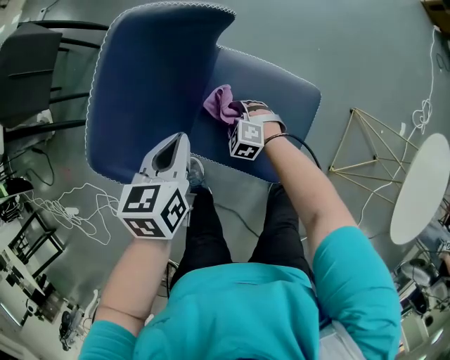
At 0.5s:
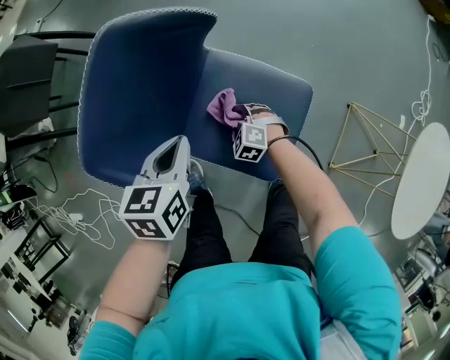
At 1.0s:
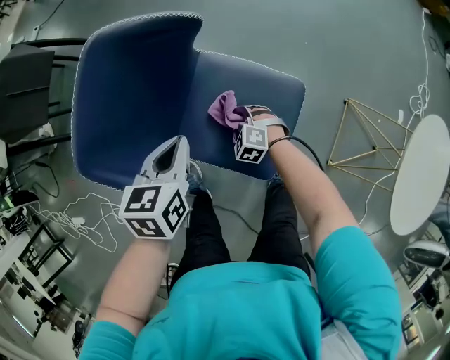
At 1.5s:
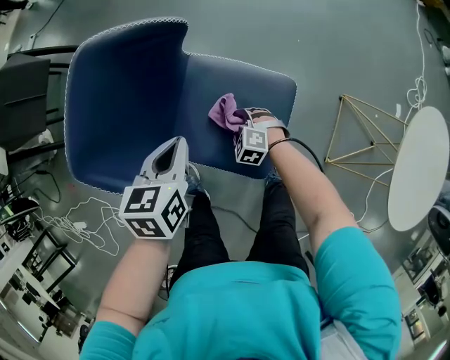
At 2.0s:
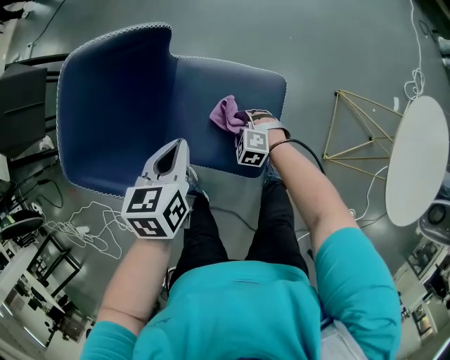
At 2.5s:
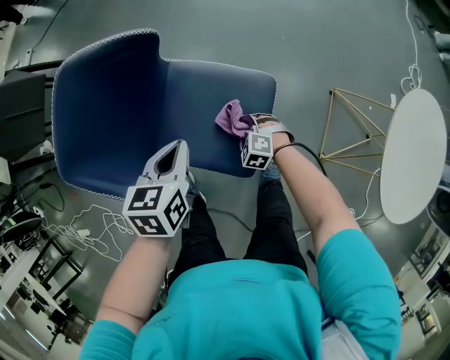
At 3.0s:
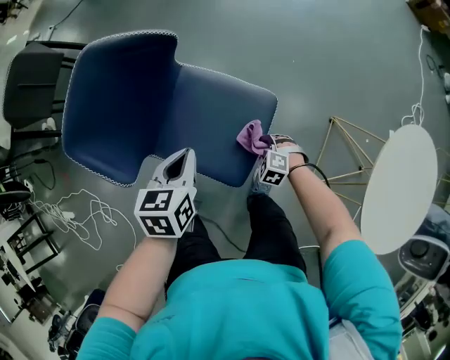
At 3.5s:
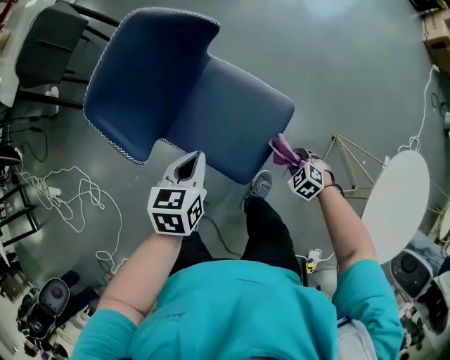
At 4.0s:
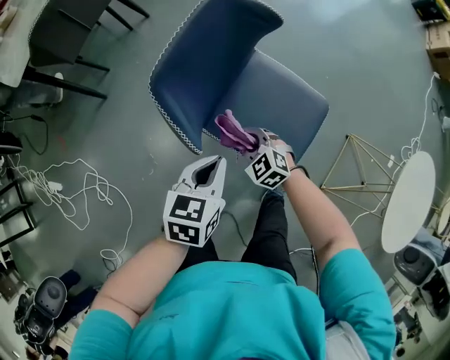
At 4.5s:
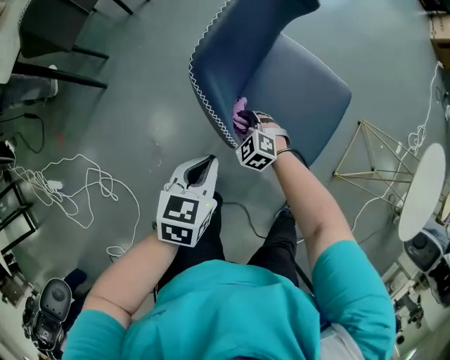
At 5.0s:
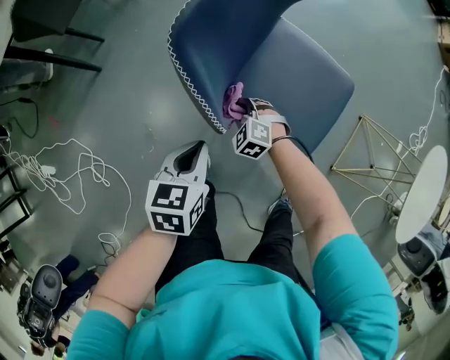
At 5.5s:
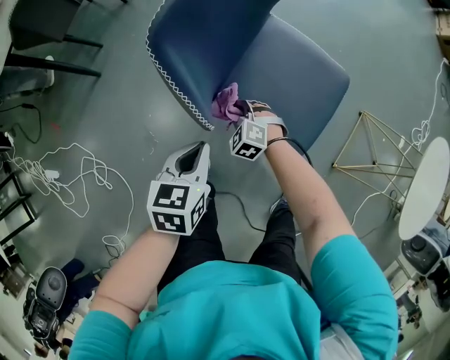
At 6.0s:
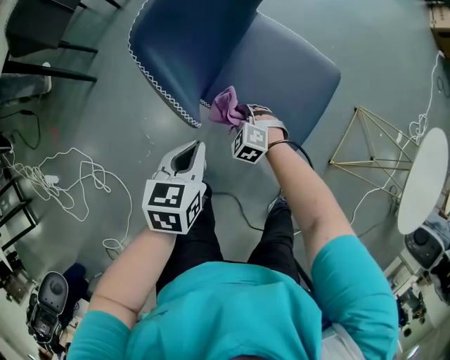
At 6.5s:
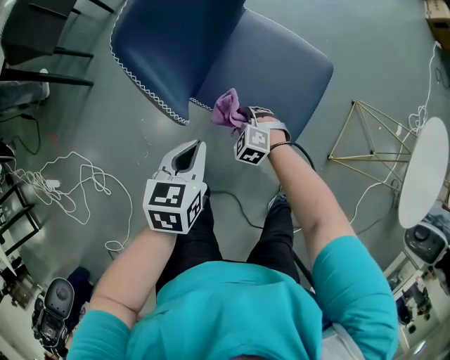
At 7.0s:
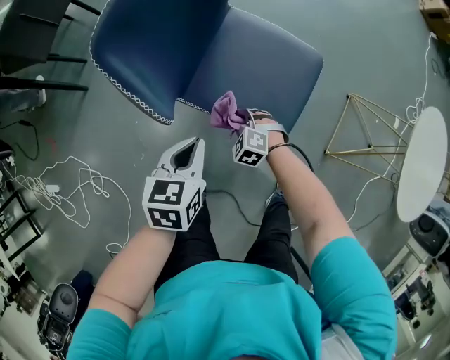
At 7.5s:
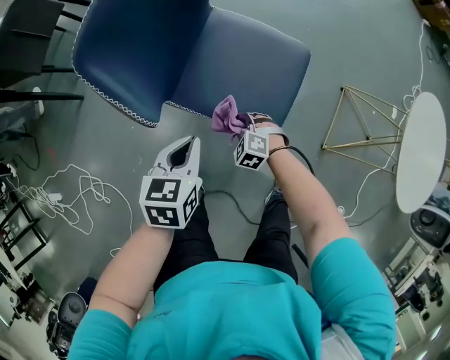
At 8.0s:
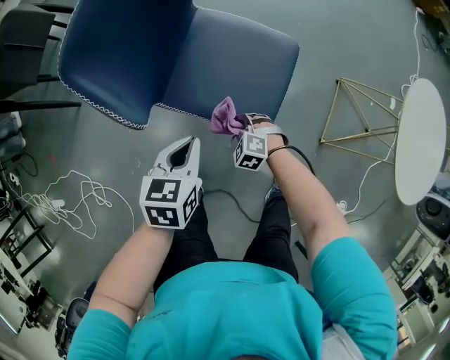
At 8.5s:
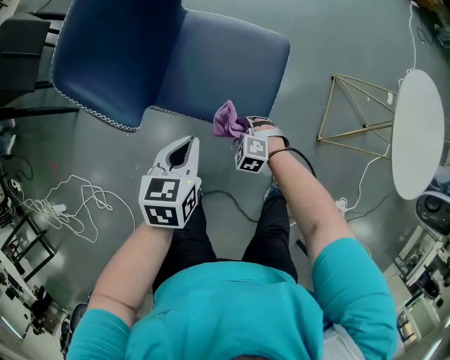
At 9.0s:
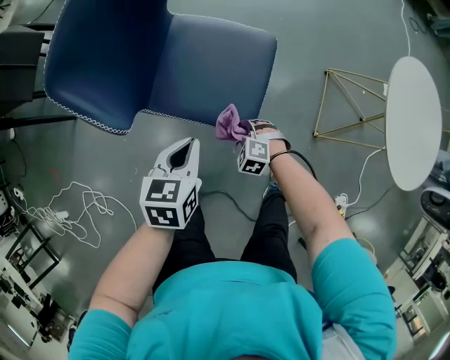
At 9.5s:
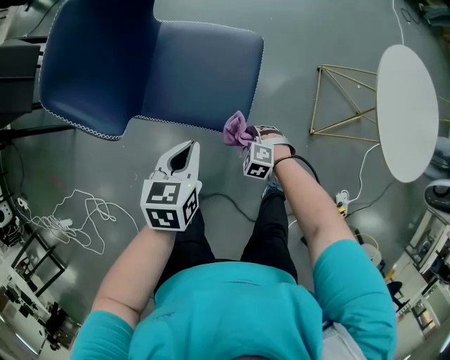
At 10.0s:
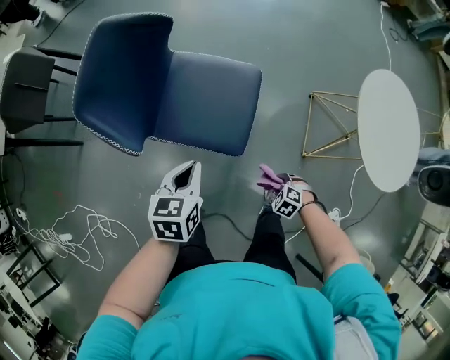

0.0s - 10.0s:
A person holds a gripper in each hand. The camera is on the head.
0.0s - 2.0s: The right gripper moves to the right and backward, about 15 cm, while the left gripper shifts approximately 10 cm to the right.
2.0s - 4.0s: The left gripper goes approximately 15 cm to the left and backward, while the right gripper shifts about 25 cm to the left and upward, and changes its angle by approximately 20 degrees.
4.0s - 6.0s: The right gripper goes roughly 10 cm downward, and turns by about 20 degrees; the left gripper is displaced downward and to the left by about 10 cm.
6.0s - 8.0s: The left gripper moves to the right, some 10 cm; the right gripper goes some 15 cm to the right and backward.
8.0s - 10.0s: The right gripper changes place by about 25 cm, and changes its angle by roughly 20 degrees. Meanwhile the left gripper goes roughly 5 cm upward.

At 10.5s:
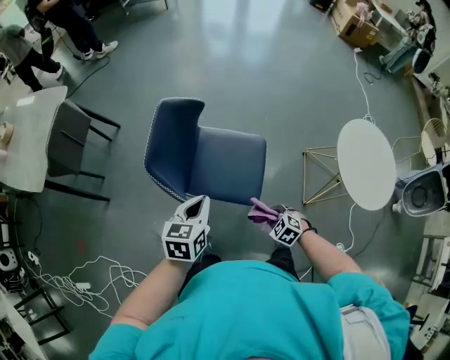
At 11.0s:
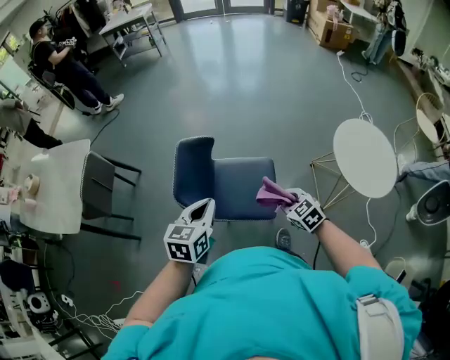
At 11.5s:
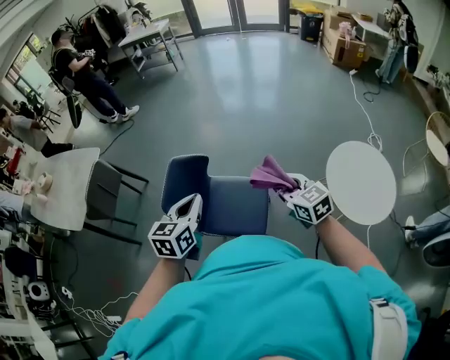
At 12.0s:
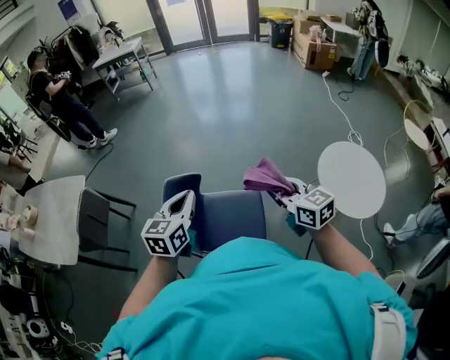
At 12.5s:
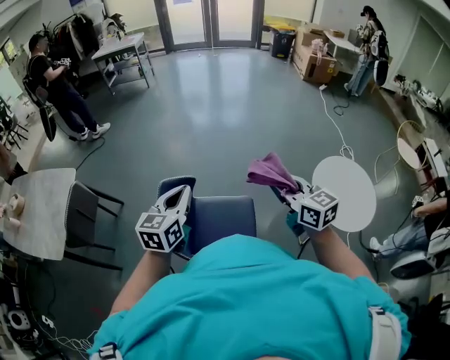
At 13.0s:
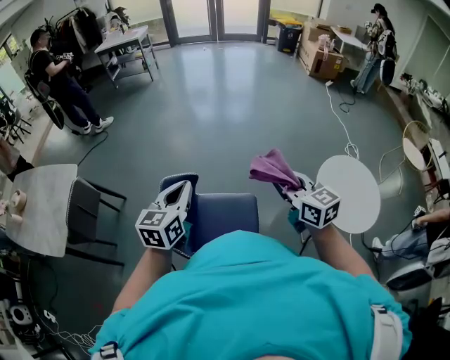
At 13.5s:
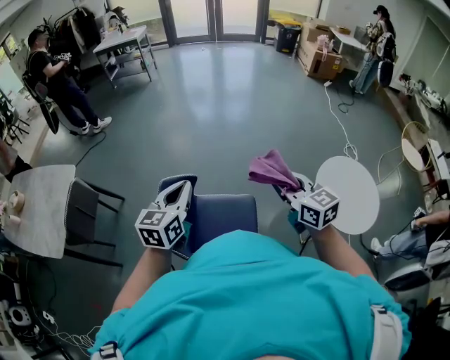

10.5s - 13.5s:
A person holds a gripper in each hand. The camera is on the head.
10.5s - 12.0s: The right gripper travels upward and forward by roughly 50 cm, and tilts its fingers some 50 degrees upward, while the left gripper moves upward and forward, approximately 25 cm, and turns by some 20 degrees.
12.0s - 13.5s: The grippers both shift forward by about 5 cm.

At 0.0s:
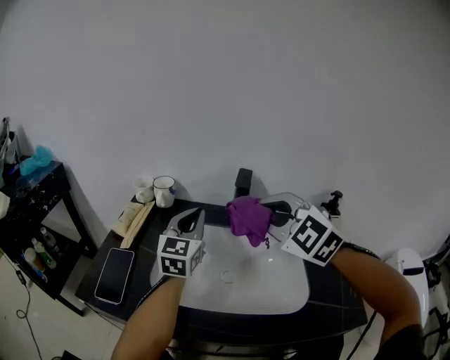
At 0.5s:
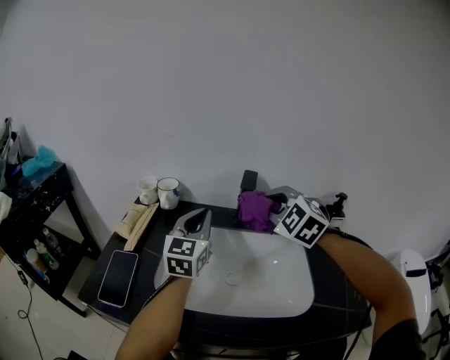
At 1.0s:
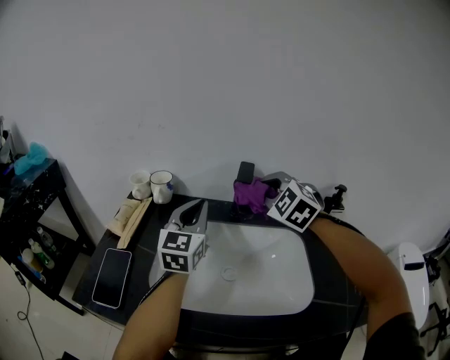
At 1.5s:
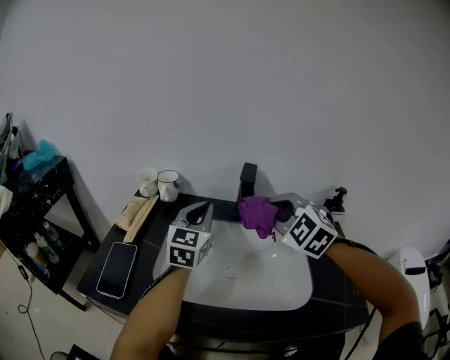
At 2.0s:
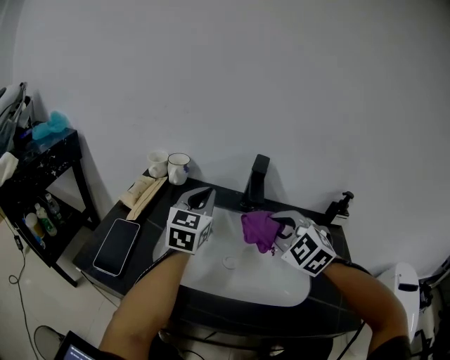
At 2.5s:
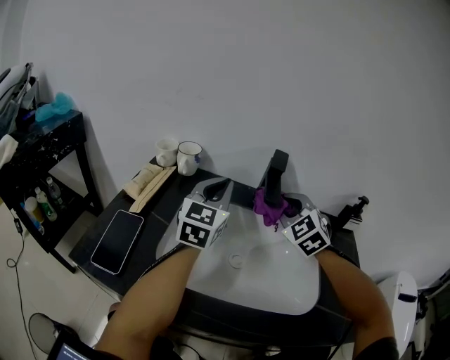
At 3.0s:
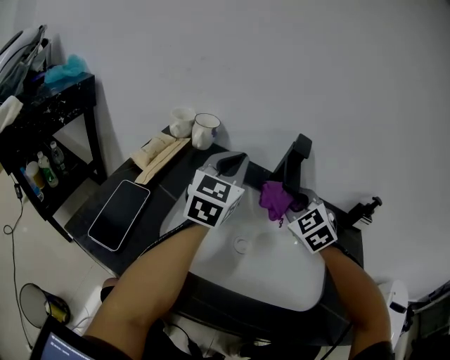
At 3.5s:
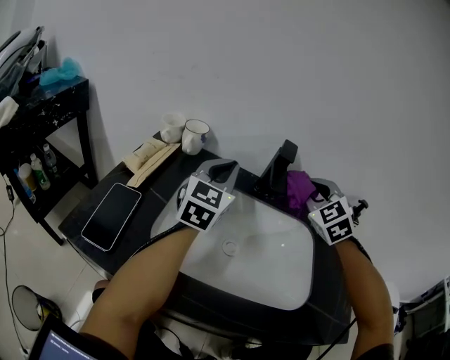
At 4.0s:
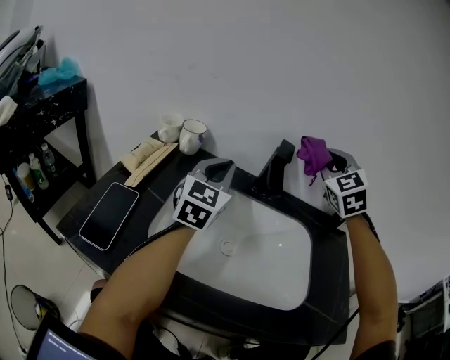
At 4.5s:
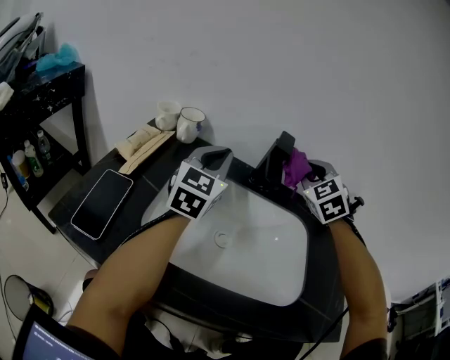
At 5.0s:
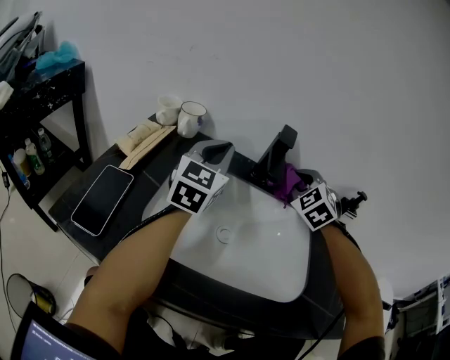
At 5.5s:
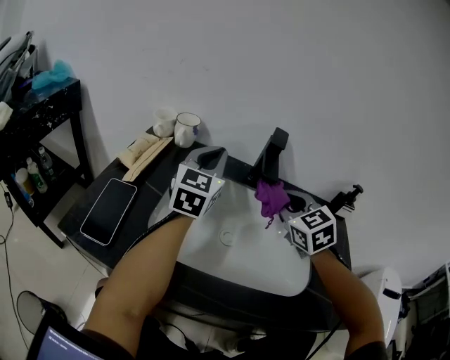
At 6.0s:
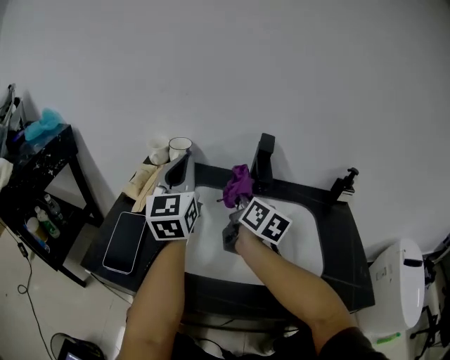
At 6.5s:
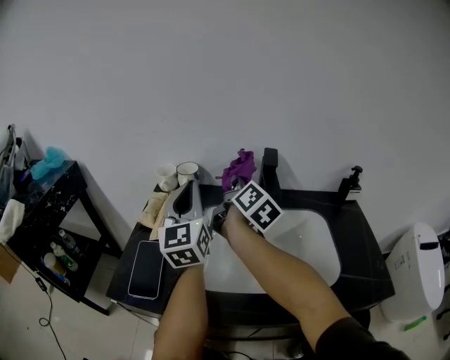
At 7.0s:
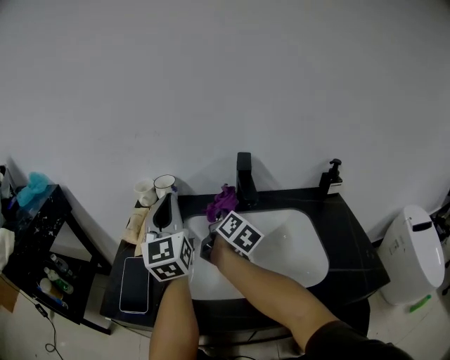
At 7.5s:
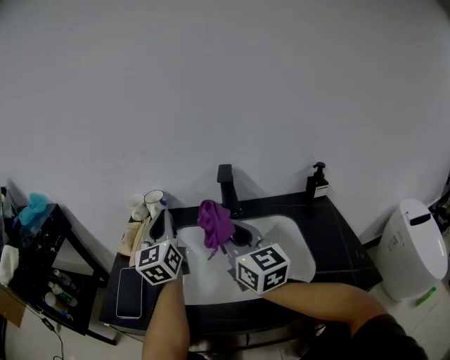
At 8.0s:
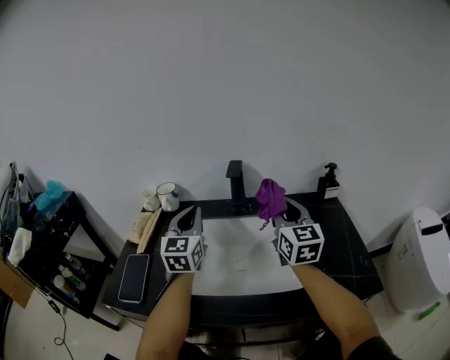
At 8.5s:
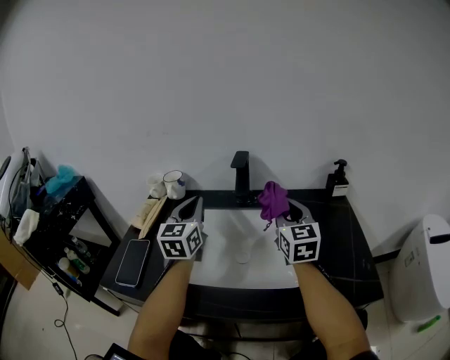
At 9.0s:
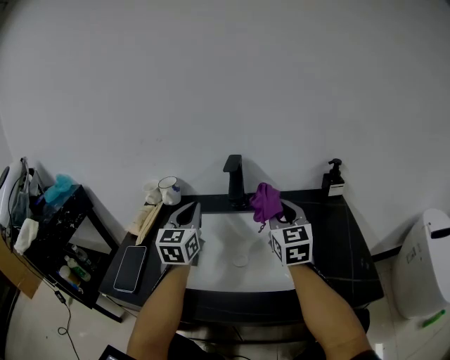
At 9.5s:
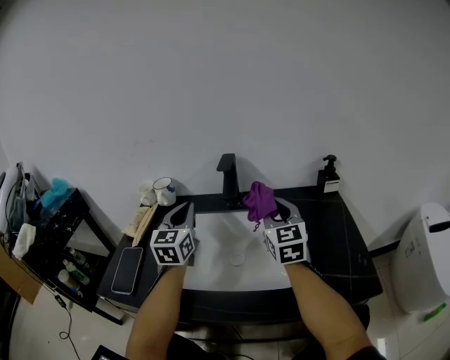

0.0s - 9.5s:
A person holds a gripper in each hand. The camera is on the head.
0.0s - 2.0s: The right gripper shifts roughly 10 cm downward, and travels forward and back again, about 10 cm each way.
2.0s - 4.0s: The right gripper travels forward, upward and to the right by roughly 20 cm, and rotates approximately 20 degrees.
4.0s - 5.5s: The right gripper travels downward and backward by approximately 20 cm, and changes its angle by some 30 degrees.
5.5s - 7.5s: The left gripper travels to the left by some 5 cm. Meanwhile the right gripper is displaced to the left, backward and upward by approximately 15 cm, and points its fingers some 30 degrees further upward.
7.5s - 9.5s: The right gripper travels to the right and forward by approximately 15 cm, and rotates about 20 degrees. Meanwhile the left gripper moves to the right, roughly 5 cm.

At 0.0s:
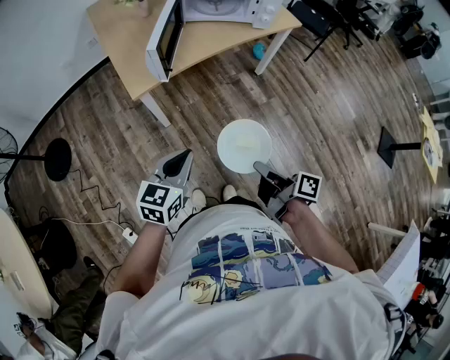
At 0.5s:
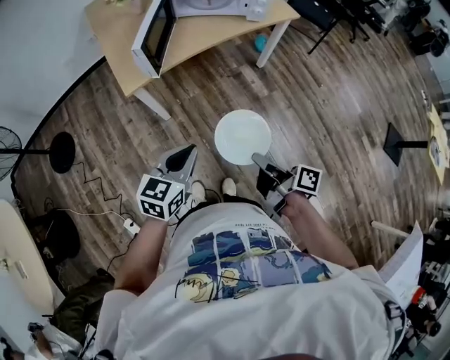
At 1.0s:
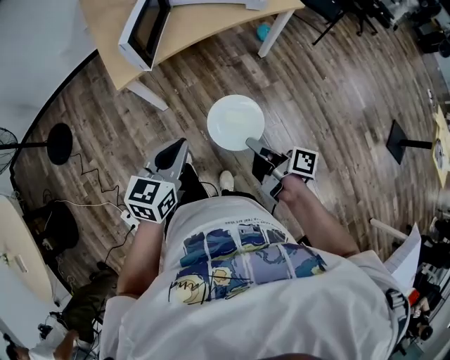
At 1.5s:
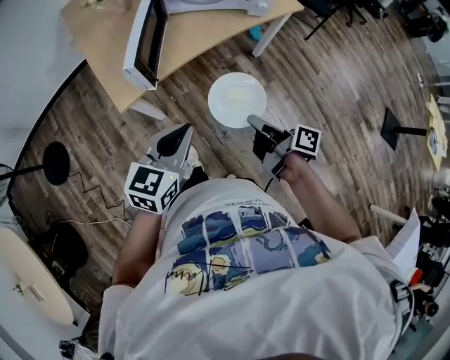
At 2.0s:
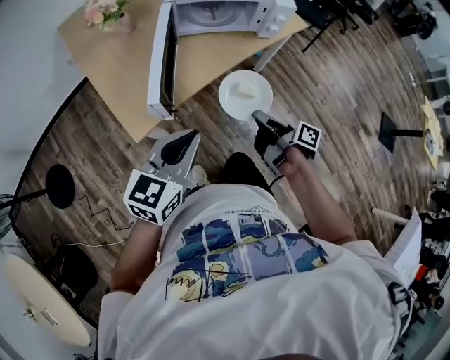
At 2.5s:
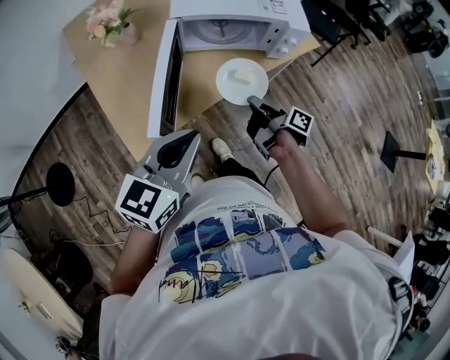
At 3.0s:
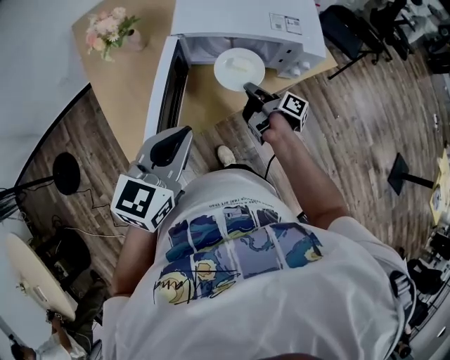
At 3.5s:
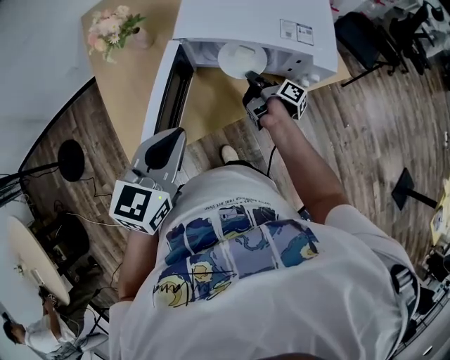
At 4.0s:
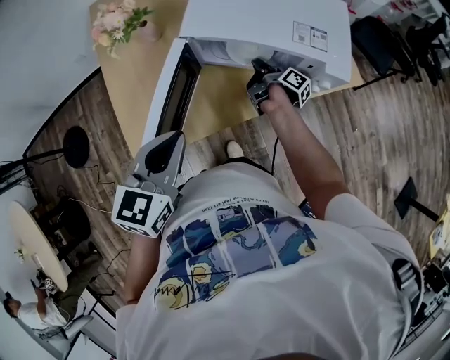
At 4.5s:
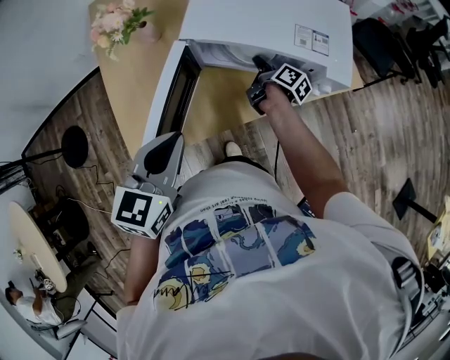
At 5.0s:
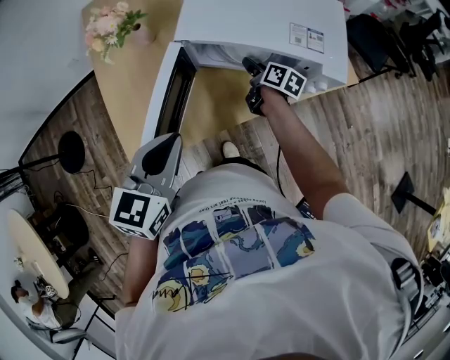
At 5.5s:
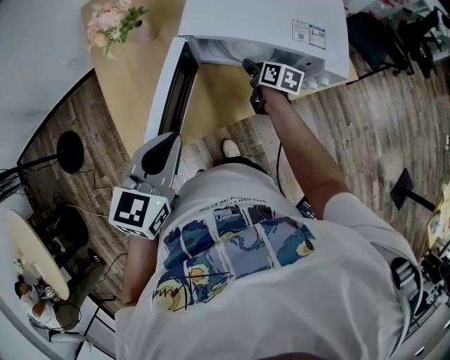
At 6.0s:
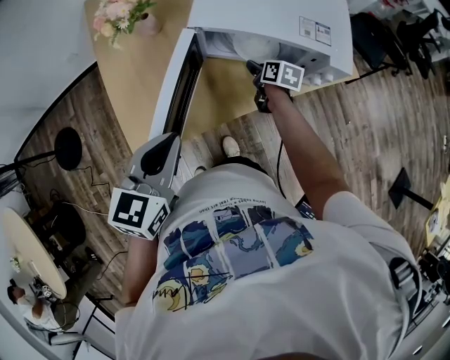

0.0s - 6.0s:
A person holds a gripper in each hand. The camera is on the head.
0.0s - 2.0s: Both grippers move forward, about 25 cm.
2.0s - 4.0s: The left gripper moves forward, about 20 cm, and changes its angle by roughly 30 degrees. Meanwhile the right gripper is displaced forward by about 40 cm.
4.0s - 6.0s: The right gripper twists about 50 degrees counterclockwise, seen from behind, and opens.
